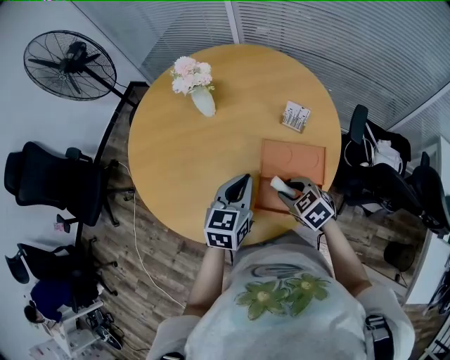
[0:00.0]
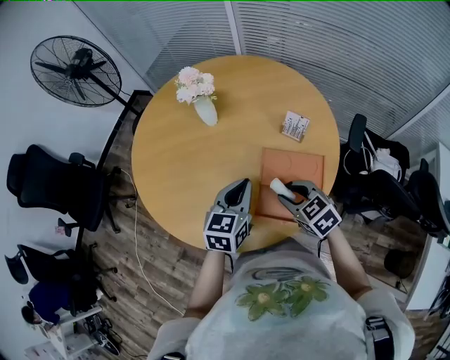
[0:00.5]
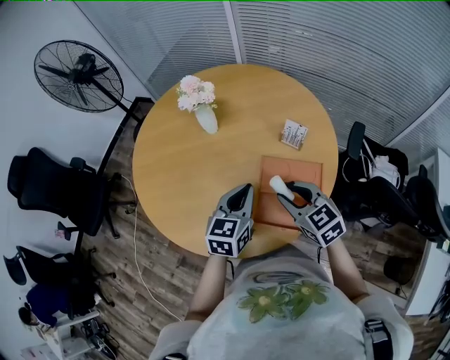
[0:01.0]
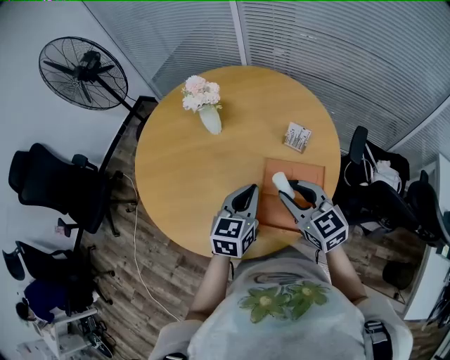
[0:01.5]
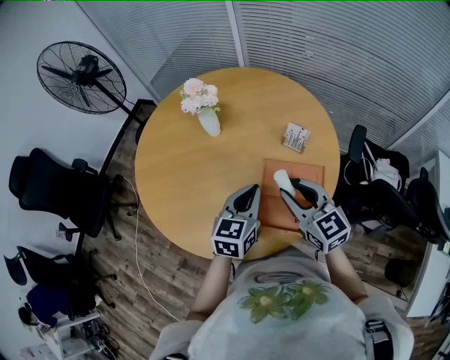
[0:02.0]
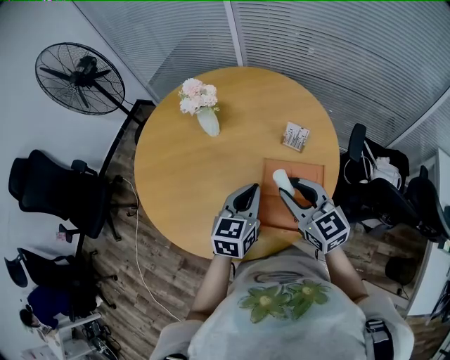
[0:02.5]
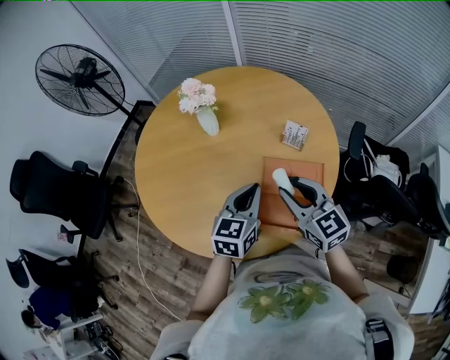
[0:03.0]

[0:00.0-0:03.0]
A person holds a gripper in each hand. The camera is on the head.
0:00.0 to 0:01.5: The right gripper shifts roughly 15 cm upward, and tilts its fingers roughly 30 degrees upward.
0:01.5 to 0:03.0: The grippers move only a little.

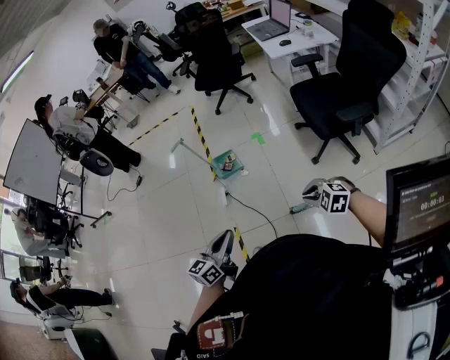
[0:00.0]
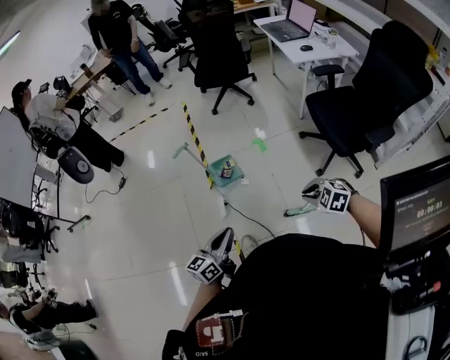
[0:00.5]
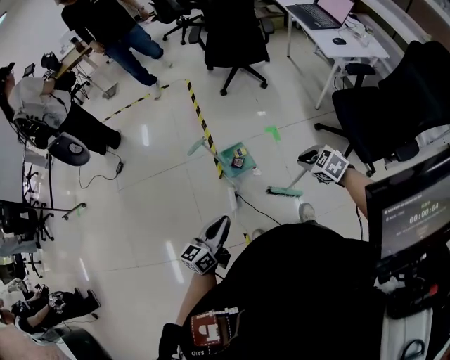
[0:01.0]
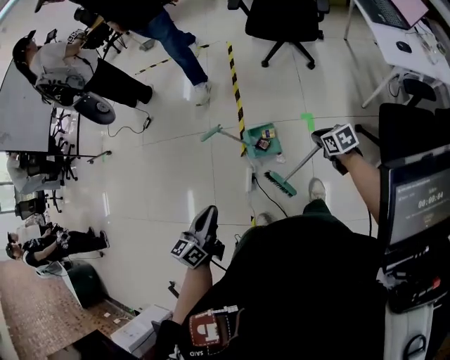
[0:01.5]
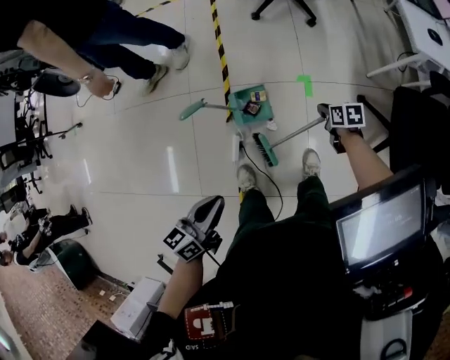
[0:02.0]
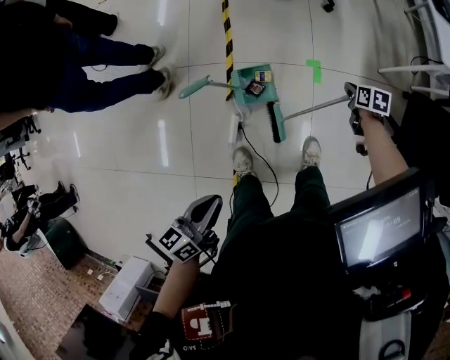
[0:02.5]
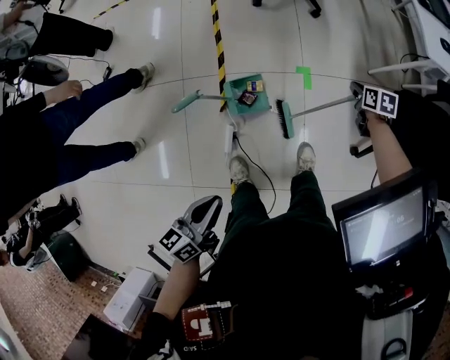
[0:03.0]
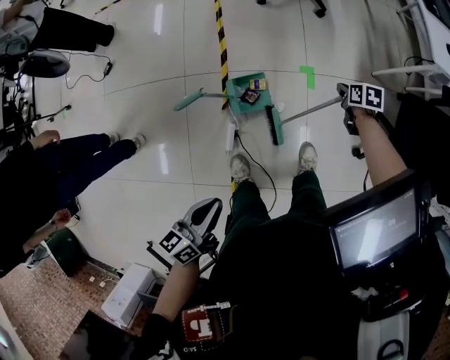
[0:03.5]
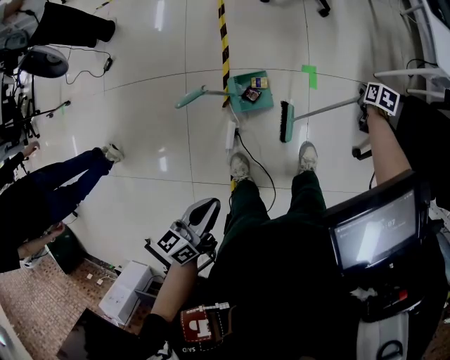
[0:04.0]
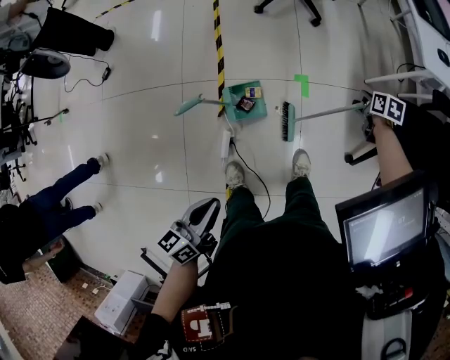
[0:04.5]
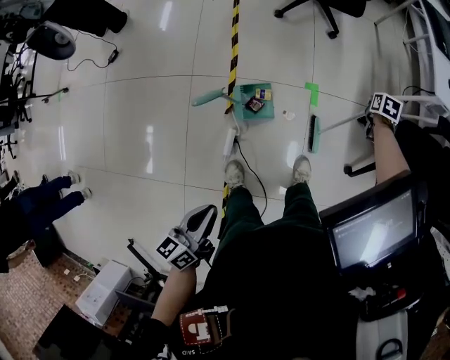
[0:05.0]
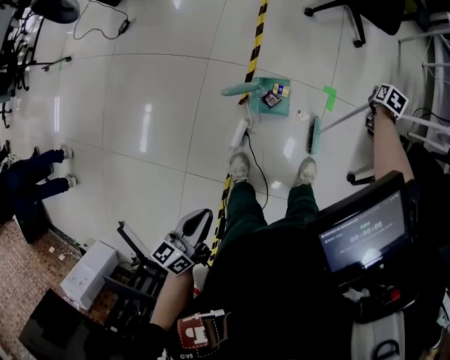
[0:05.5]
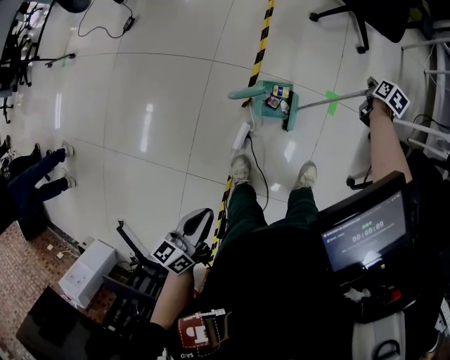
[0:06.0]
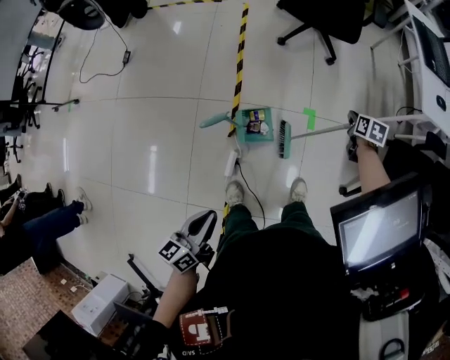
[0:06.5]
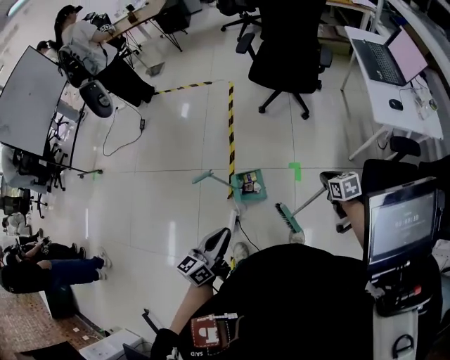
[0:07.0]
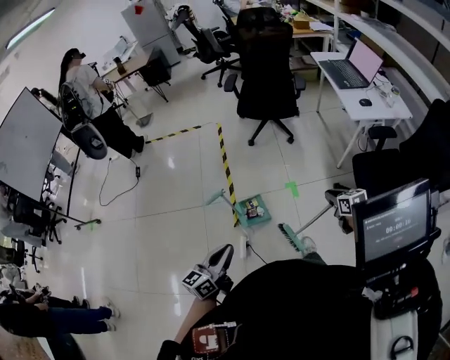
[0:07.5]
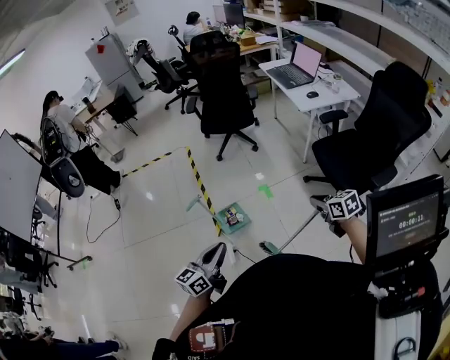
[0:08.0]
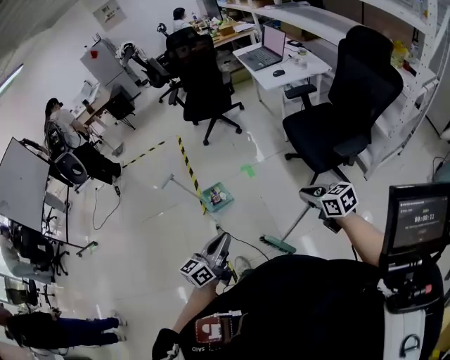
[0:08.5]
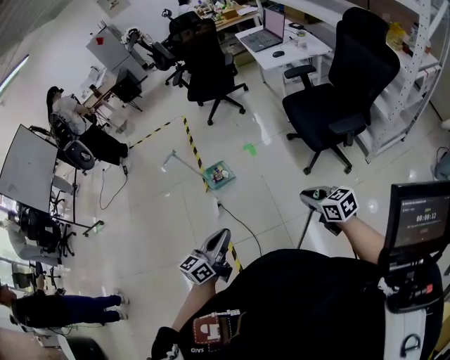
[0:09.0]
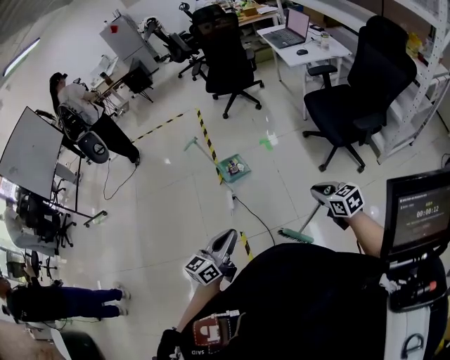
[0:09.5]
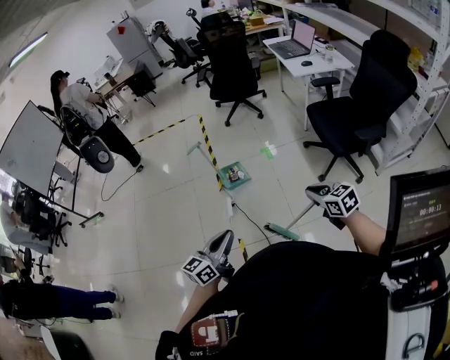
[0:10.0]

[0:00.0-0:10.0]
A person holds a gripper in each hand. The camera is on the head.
0:00.0 to 0:02.0: The pair of grippers is taken forward, about 60 cm. The right gripper rotates around the line of its fingers by approximately 70 degrees, clockwise from behind. The left gripper swivels roughly 20 degrees.
0:02.0 to 0:04.0: The right gripper swings left and right, approximately 15 cm each way, with 2 reversals, and swivels about 20 degrees.
0:04.0 to 0:06.0: The right gripper moves to the left, roughly 20 cm. Meanwhile the left gripper shifts about 15 cm to the left and backward.
0:06.0 to 0:08.0: The right gripper heads backward and upward, covering some 60 cm, and changes its angle by some 20 degrees. Meanwhile the left gripper goes about 25 cm upward and to the right, and turns by roughly 50 degrees.
0:08.0 to 0:10.0: The two grippers go about 30 cm backward.

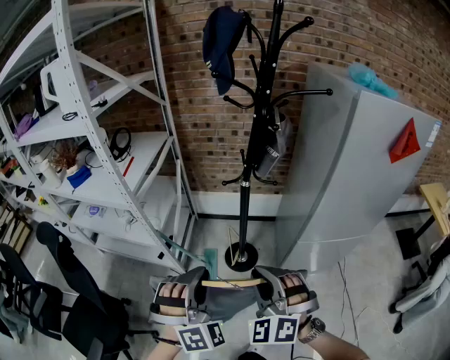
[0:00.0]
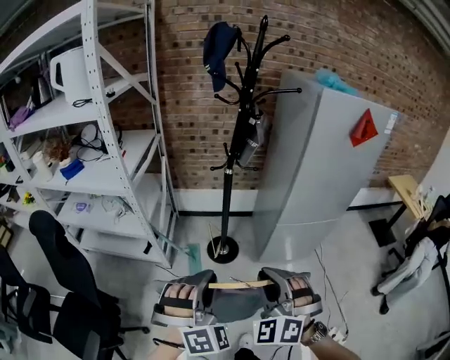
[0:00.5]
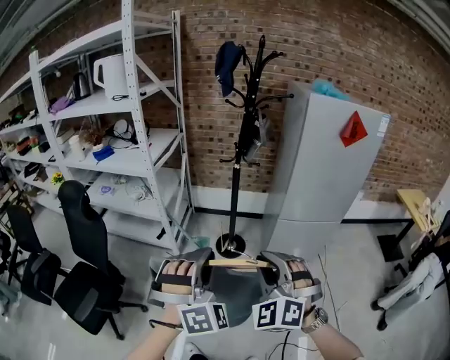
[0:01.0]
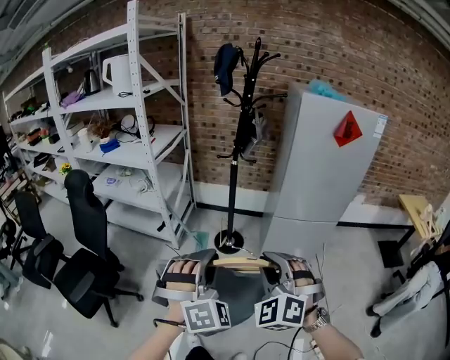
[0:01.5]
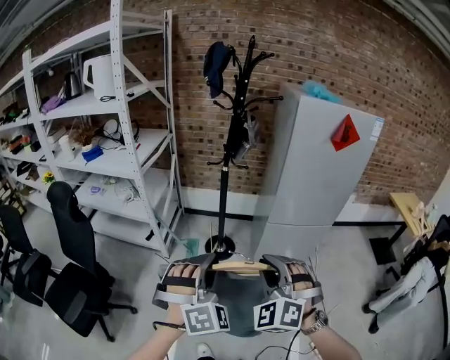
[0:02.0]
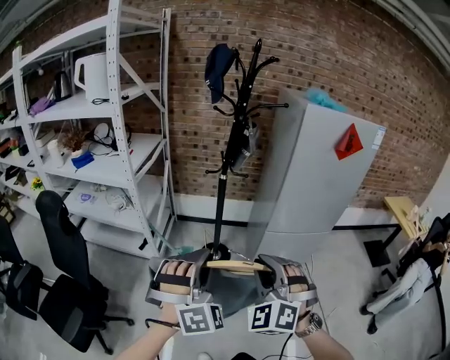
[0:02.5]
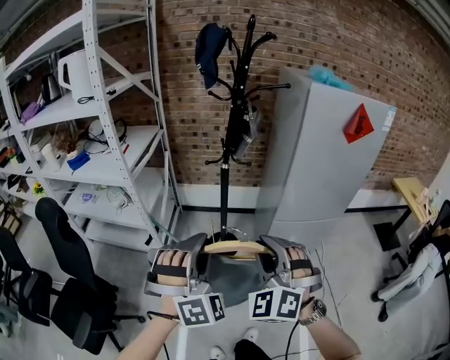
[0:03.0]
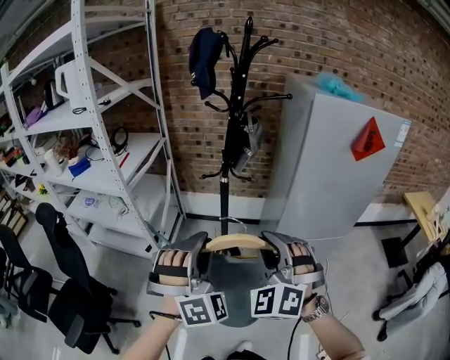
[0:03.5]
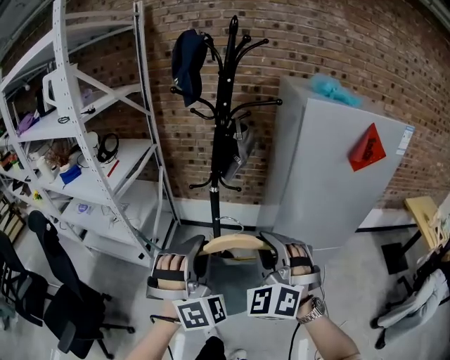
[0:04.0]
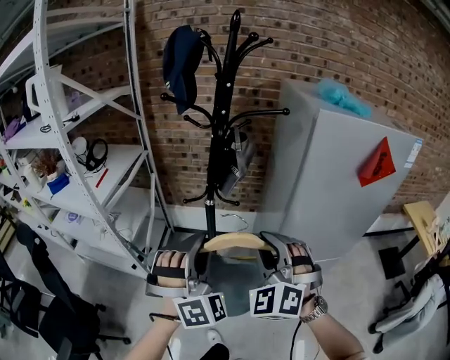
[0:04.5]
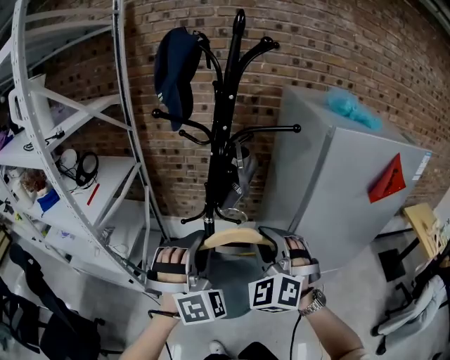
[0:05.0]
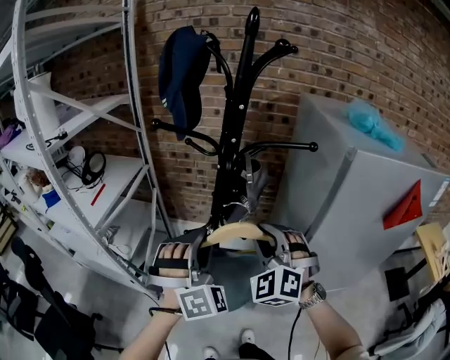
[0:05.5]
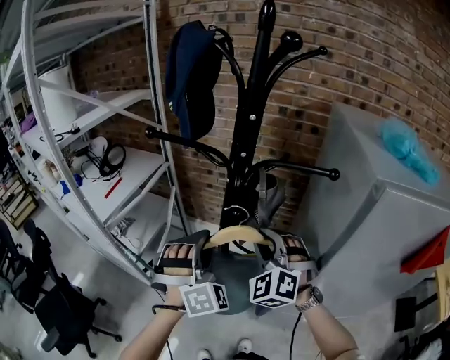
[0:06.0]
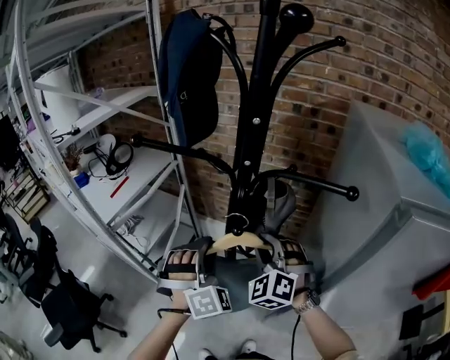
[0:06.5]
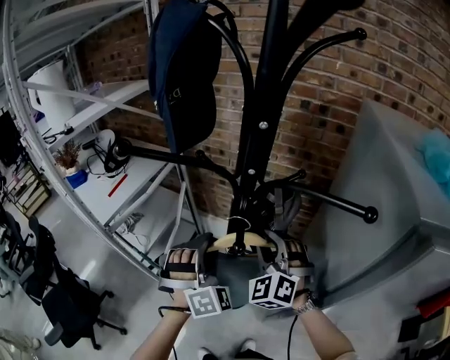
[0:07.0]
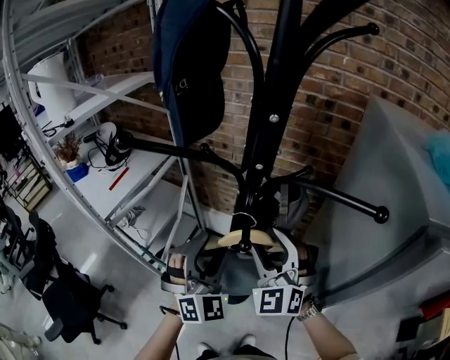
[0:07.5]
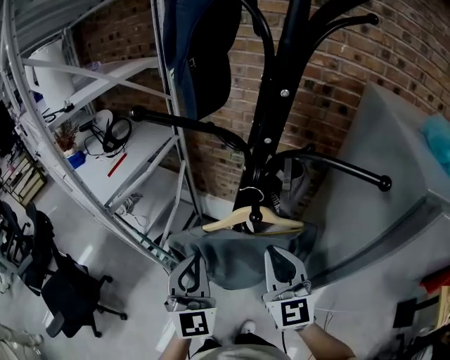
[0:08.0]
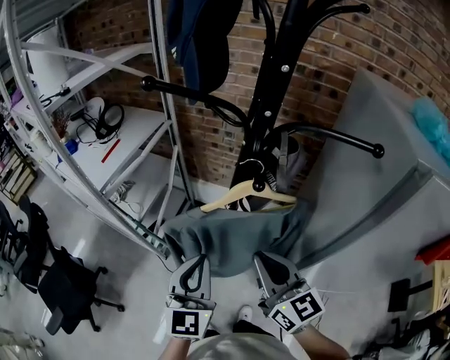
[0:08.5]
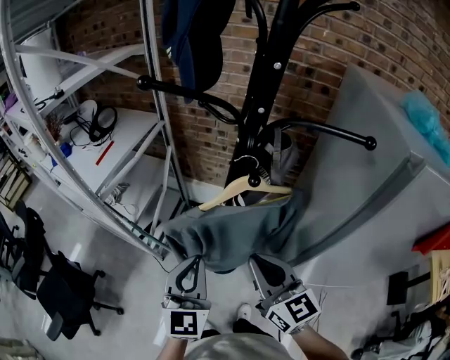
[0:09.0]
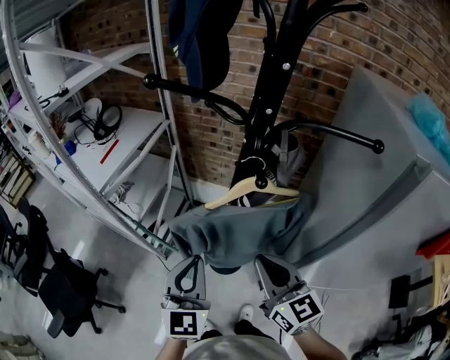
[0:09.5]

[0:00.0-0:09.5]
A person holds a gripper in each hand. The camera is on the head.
0:00.0 to 0:02.0: The grippers both shift backward by approximately 30 cm.
0:02.0 to 0:04.0: The two grippers go approximately 25 cm forward.
0:04.0 to 0:05.5: The grippers both shift forward by roughly 25 cm.
0:05.5 to 0:07.5: The right gripper heads forward, covering roughly 15 cm, rotates roughly 20 degrees, and opens up; the left gripper moves forward and downward, some 15 cm, and opens up.
0:07.5 to 0:09.5: The right gripper moves backward, roughly 15 cm, rotates around the line of its fingers by some 50 degrees, clockwise from behind, and closes its fingers, while the left gripper moves backward and to the left, about 15 cm, twists some 50 degrees counterclockwise, seen from behind, and closes its fingers.

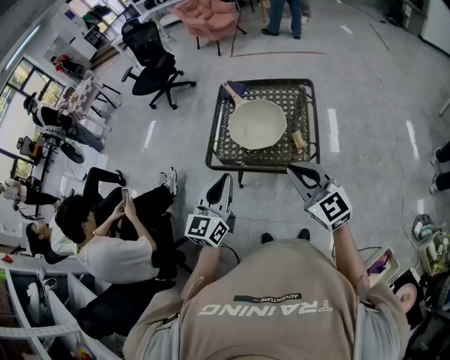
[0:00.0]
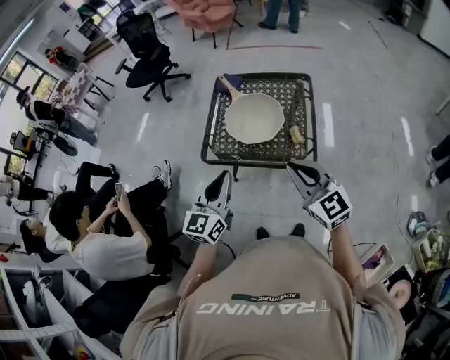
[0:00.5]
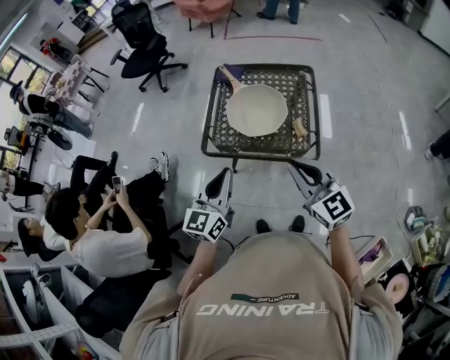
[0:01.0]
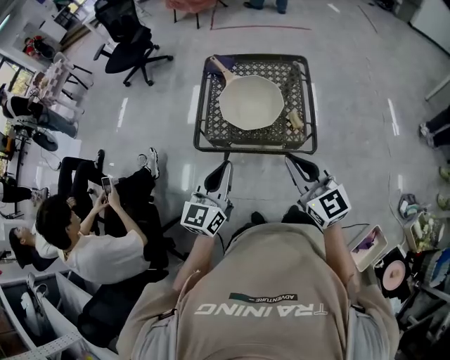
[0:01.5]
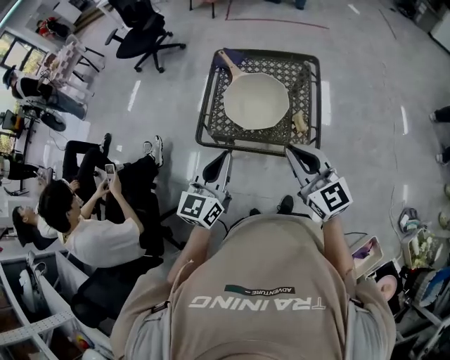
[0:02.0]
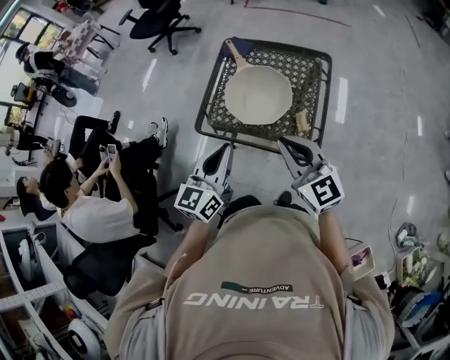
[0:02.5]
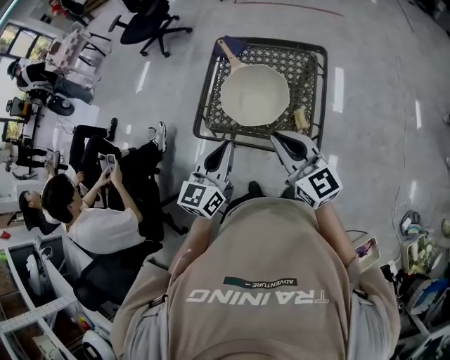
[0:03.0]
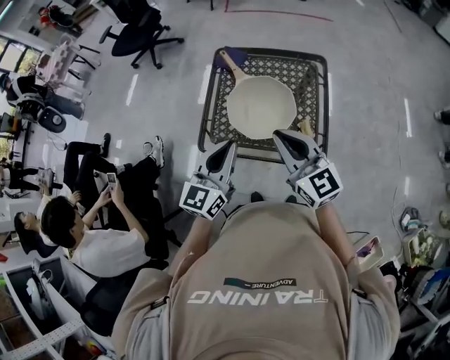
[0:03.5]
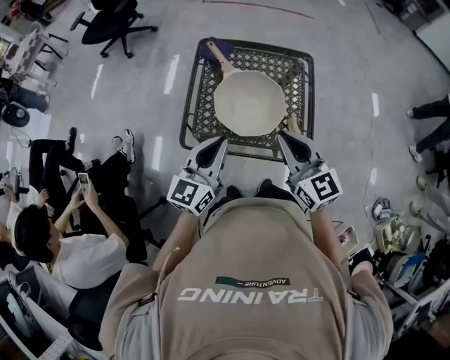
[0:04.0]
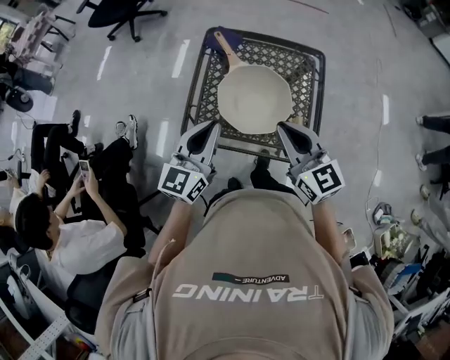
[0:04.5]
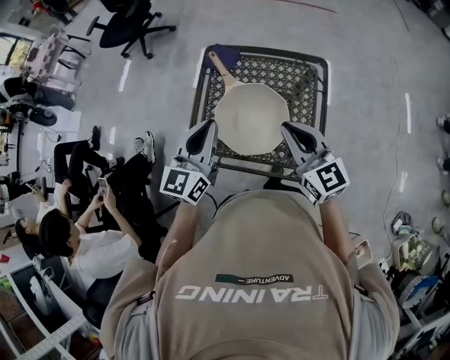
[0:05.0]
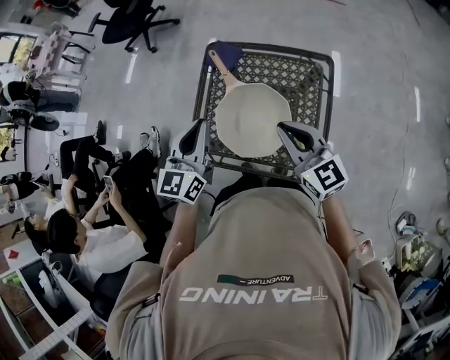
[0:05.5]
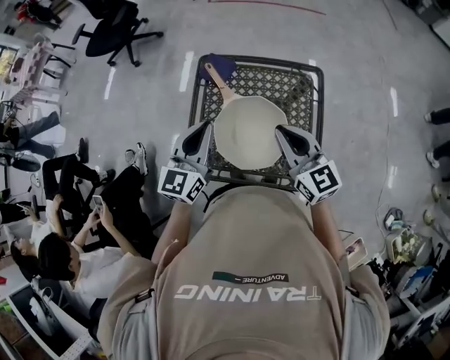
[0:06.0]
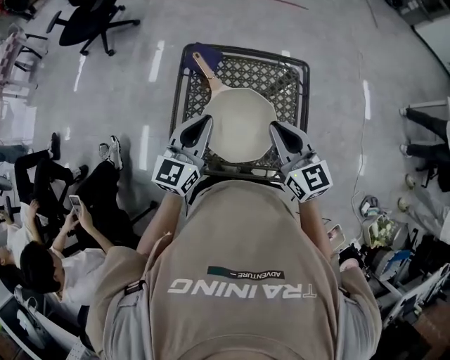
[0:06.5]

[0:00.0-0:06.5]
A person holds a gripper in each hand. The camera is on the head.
0:00.0 to 0:02.0: The grippers both shift forward by approximately 5 cm.
0:02.0 to 0:04.5: Both grippers move forward, roughly 15 cm.
0:04.5 to 0:06.5: The grippers both shift forward by some 15 cm.
